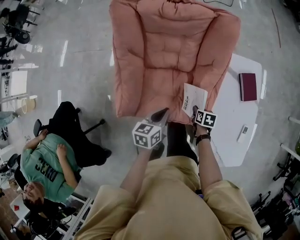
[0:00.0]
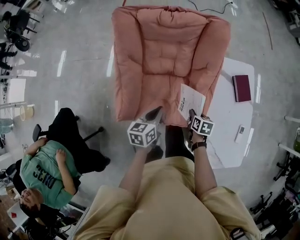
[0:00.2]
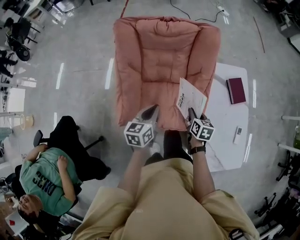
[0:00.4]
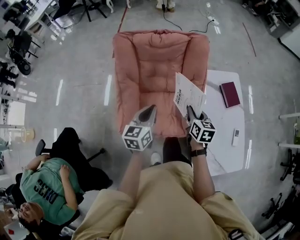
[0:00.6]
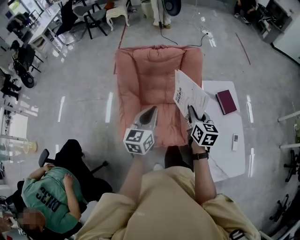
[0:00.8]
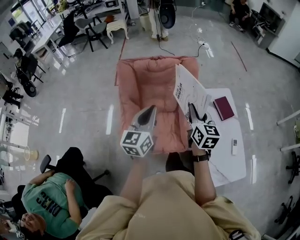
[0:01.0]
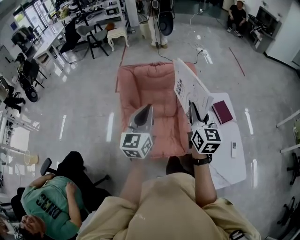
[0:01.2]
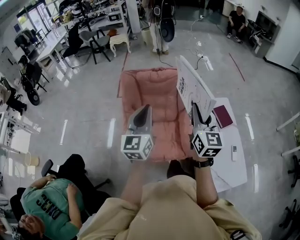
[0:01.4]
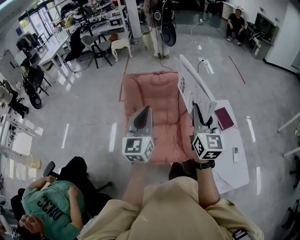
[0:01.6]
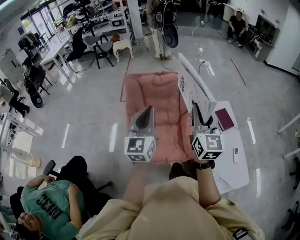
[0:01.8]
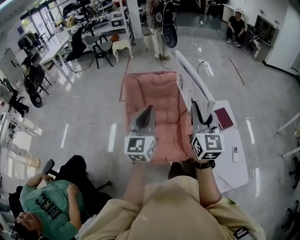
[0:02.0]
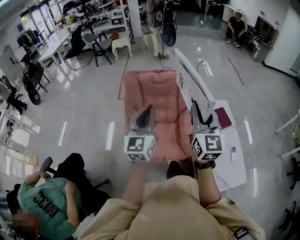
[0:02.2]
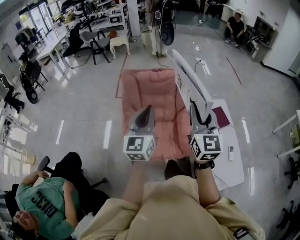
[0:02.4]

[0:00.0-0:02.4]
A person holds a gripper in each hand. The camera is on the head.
0:00.0 to 0:01.2: The grippers both shift upward by roughly 40 cm. The right gripper tips its fingers upward by about 60 degrees. Meanwhile the left gripper tips its fingers upward by about 40 degrees.
0:01.2 to 0:02.4: The left gripper goes about 5 cm backward, while the right gripper travels upward and backward by approximately 10 cm.

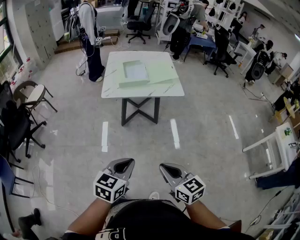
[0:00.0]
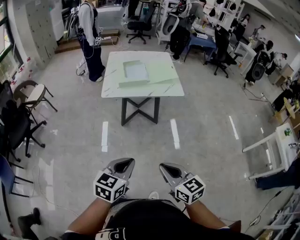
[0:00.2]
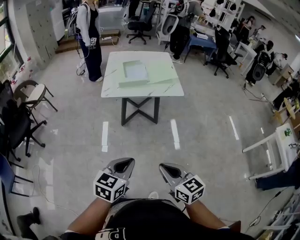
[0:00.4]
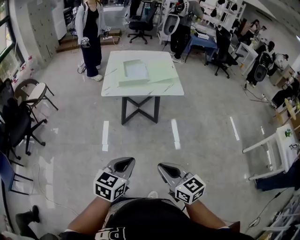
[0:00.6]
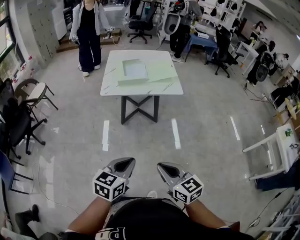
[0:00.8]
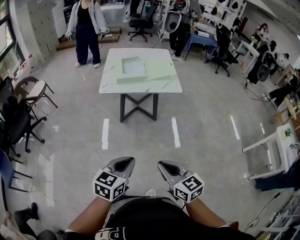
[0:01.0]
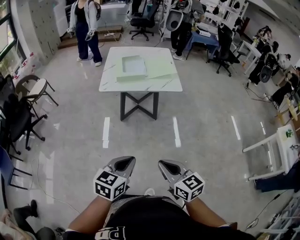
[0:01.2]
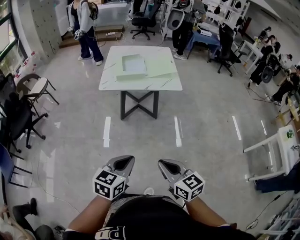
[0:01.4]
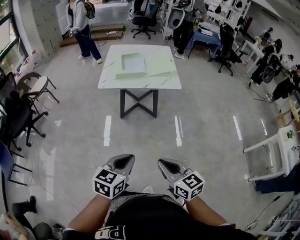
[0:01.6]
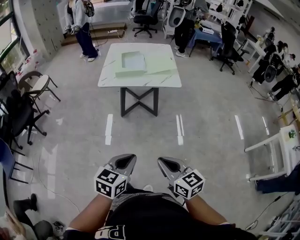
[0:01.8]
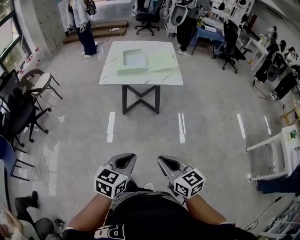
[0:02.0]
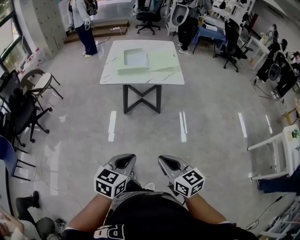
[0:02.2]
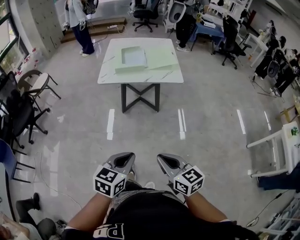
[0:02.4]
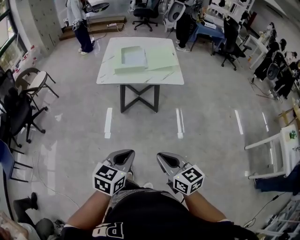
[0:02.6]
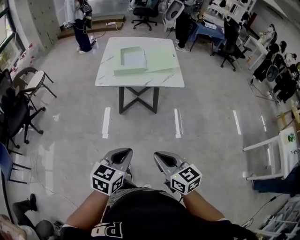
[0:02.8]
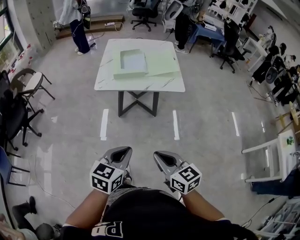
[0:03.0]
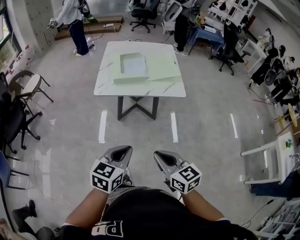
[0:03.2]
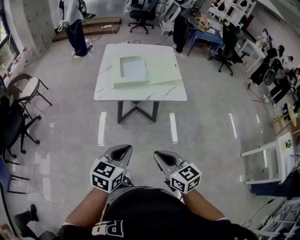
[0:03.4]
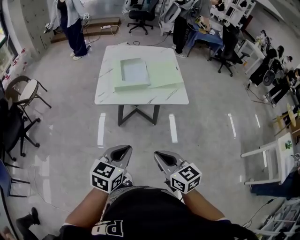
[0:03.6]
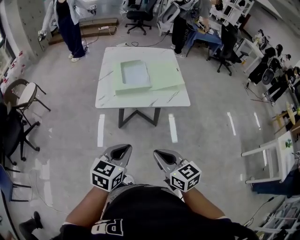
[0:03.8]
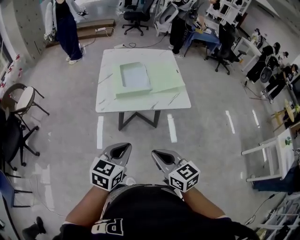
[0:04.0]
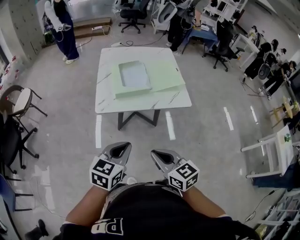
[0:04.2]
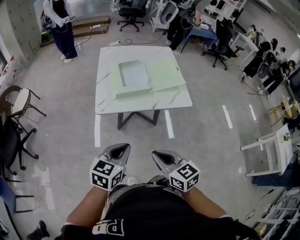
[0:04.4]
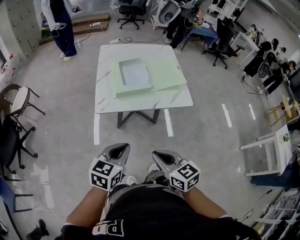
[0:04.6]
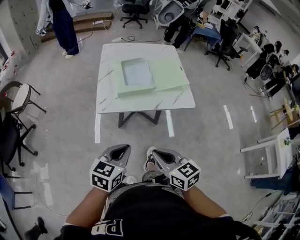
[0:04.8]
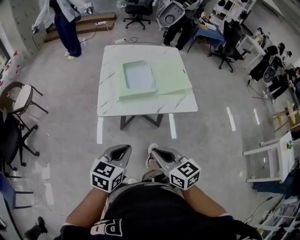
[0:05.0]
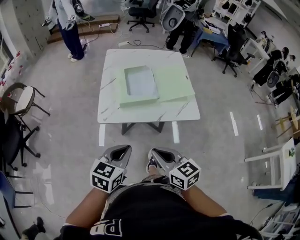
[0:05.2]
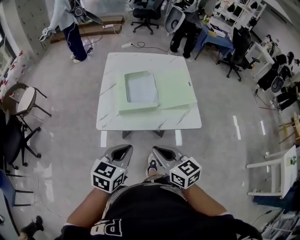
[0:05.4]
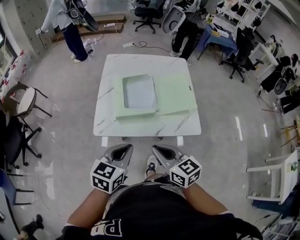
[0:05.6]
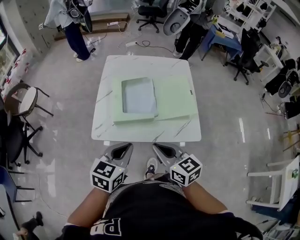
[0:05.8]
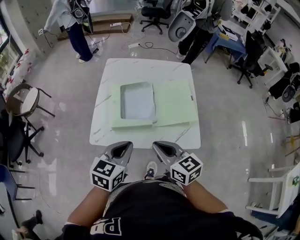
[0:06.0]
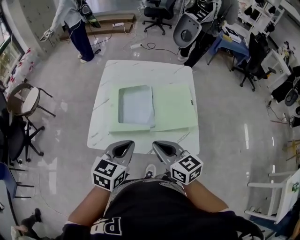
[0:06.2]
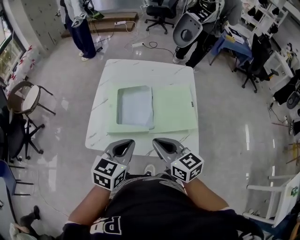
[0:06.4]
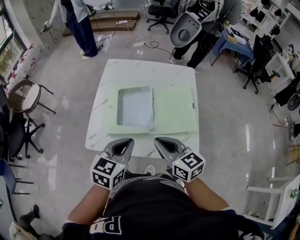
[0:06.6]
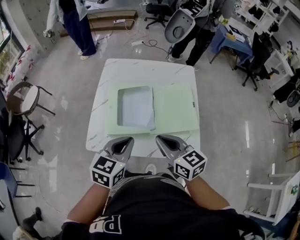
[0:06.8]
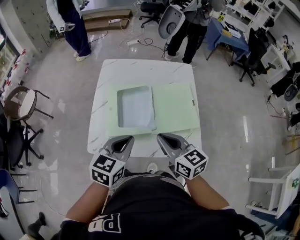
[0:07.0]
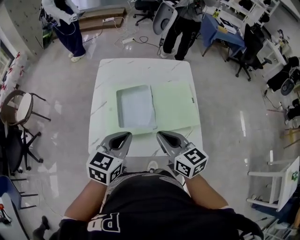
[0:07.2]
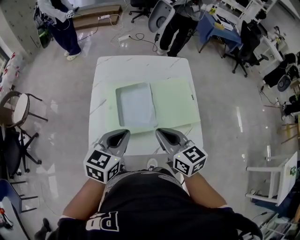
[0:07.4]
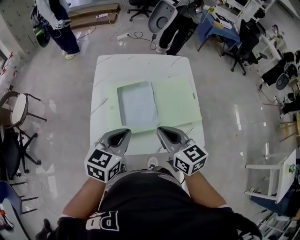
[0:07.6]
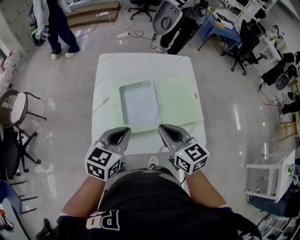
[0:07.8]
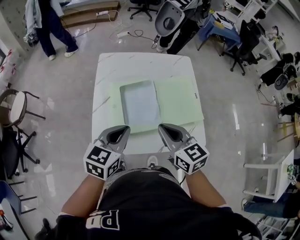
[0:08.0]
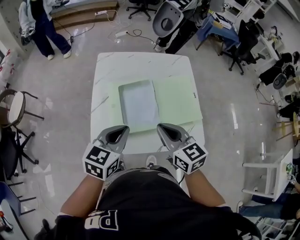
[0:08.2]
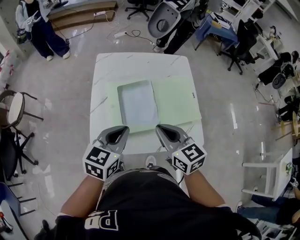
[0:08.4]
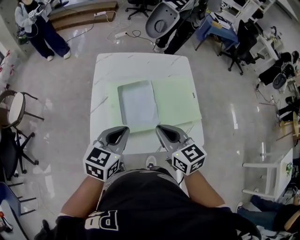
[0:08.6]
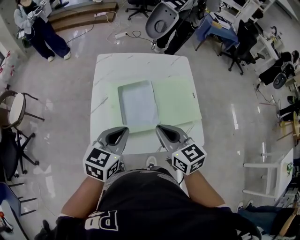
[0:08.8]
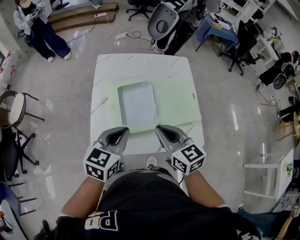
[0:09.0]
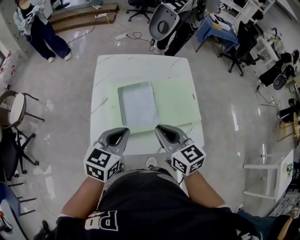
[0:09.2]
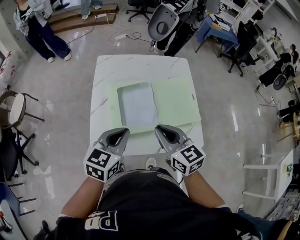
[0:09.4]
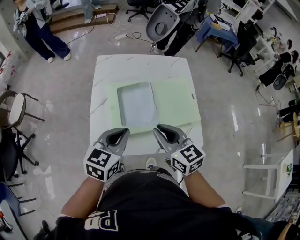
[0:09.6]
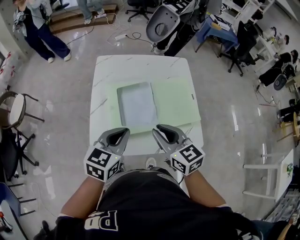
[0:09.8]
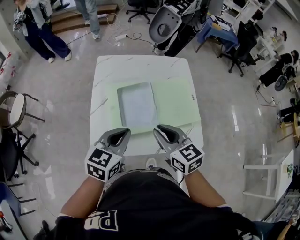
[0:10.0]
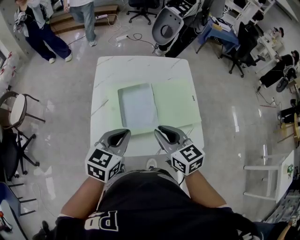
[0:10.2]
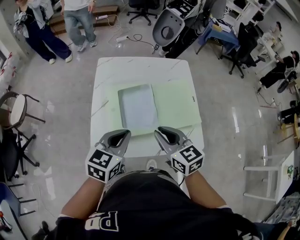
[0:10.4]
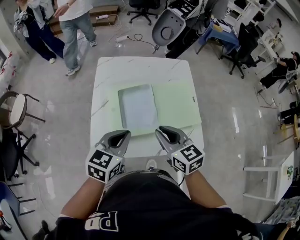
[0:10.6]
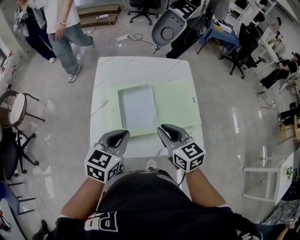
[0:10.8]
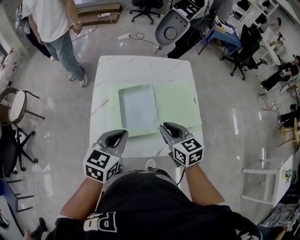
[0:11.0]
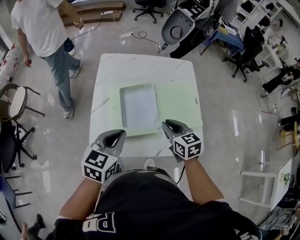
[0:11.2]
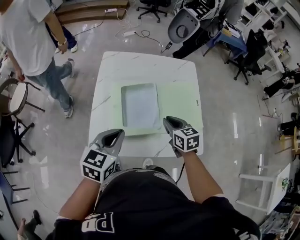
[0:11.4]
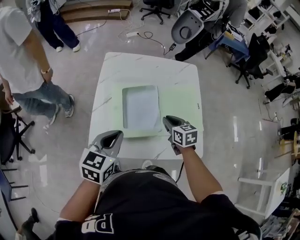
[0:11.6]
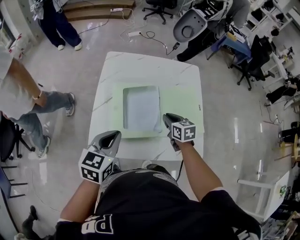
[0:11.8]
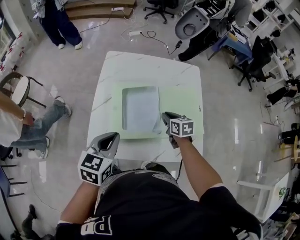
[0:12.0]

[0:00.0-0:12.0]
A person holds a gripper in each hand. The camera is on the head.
0:00.0 to 0:01.6: The two grippers go approximately 5 cm to the right.
0:01.6 to 0:03.0: The two grippers go about 10 cm forward.
0:03.0 to 0:04.4: The two grippers go about 20 cm forward and to the left.
0:04.4 to 0:06.0: The two grippers go about 30 cm forward.
0:06.0 to 0:07.6: The two grippers go some 10 cm forward.
0:07.6 to 0:10.4: The grippers make only small movements.
0:10.4 to 0:12.0: The left gripper changes place by roughly 5 cm; the right gripper heads downward and forward, covering roughly 25 cm, and rotates roughly 20 degrees.

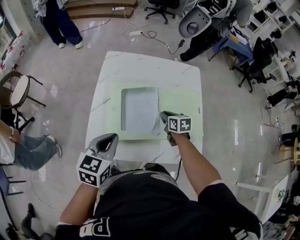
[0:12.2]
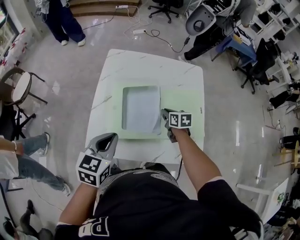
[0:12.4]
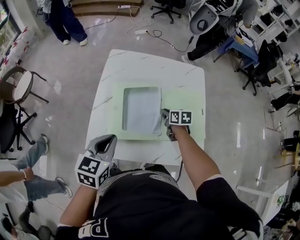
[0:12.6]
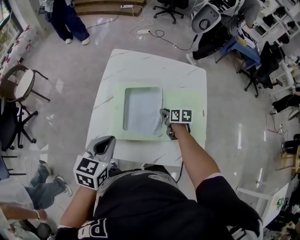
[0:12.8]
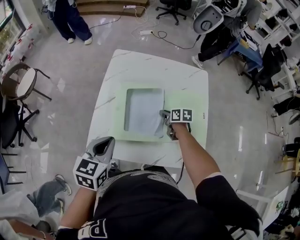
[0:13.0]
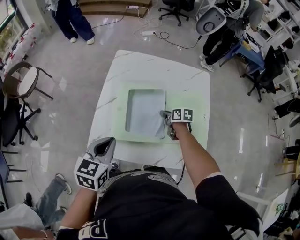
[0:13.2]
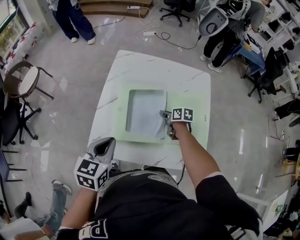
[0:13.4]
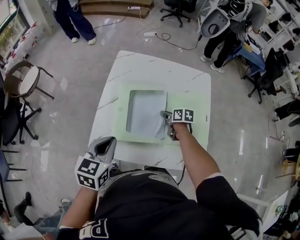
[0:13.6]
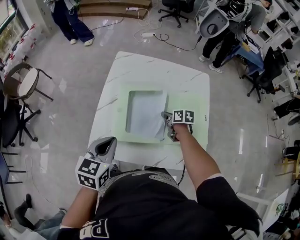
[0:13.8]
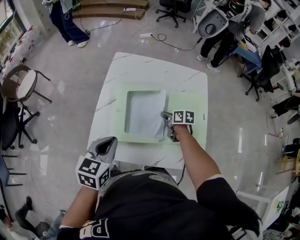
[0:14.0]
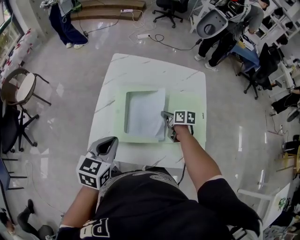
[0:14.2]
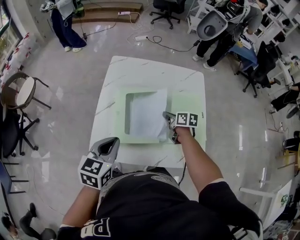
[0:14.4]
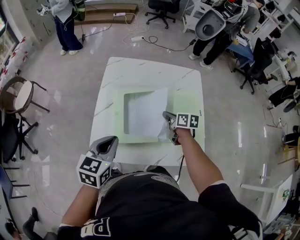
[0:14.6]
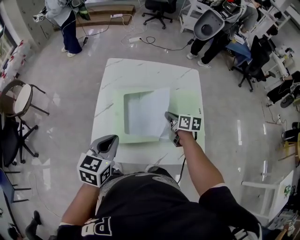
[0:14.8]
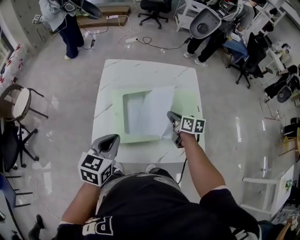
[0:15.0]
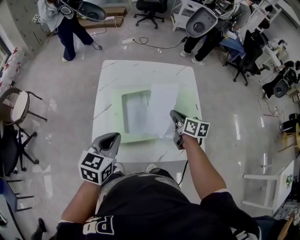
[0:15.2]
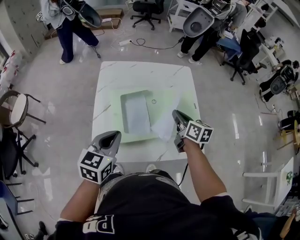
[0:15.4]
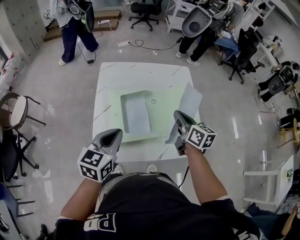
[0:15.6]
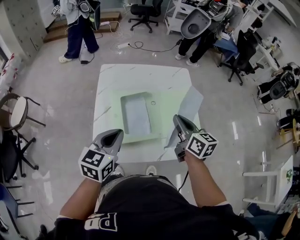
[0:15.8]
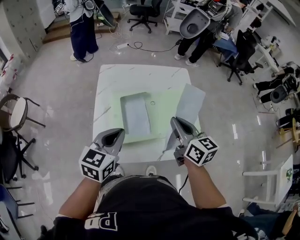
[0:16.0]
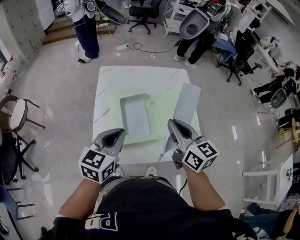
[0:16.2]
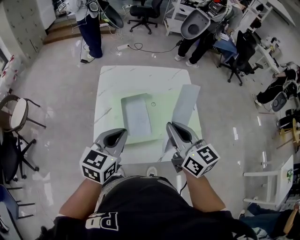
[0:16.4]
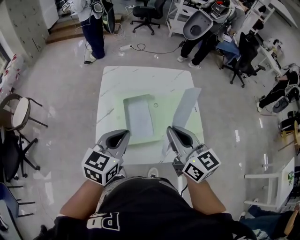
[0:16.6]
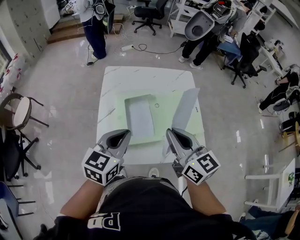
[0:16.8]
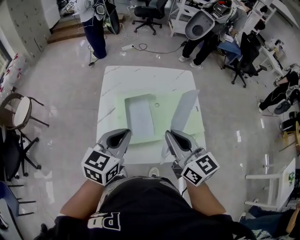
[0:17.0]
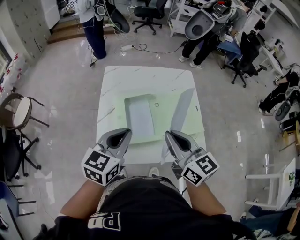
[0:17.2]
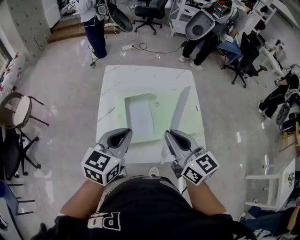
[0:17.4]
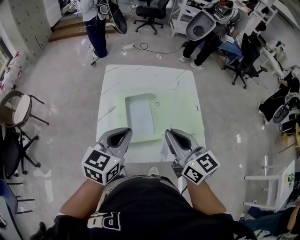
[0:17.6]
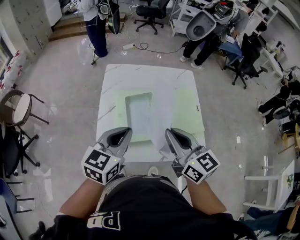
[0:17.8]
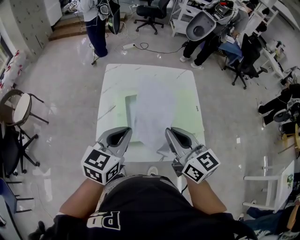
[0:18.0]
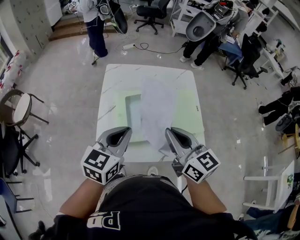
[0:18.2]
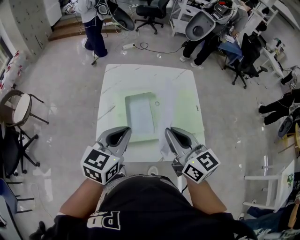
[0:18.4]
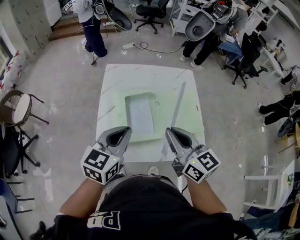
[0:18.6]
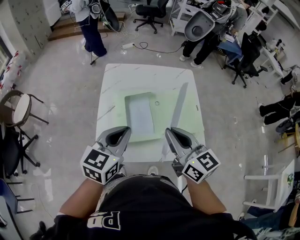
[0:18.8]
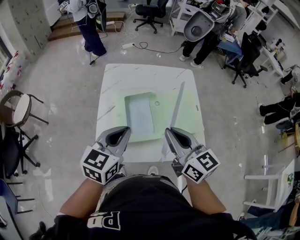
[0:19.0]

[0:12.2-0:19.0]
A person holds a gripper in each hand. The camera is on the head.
0:12.2 to 0:13.6: The right gripper heads downward, covering some 5 cm.
0:13.6 to 0:15.0: The right gripper goes about 15 cm upward and backward.
0:15.0 to 0:16.2: The left gripper goes roughly 5 cm upward; the right gripper heads upward and backward, covering roughly 25 cm, and turns by about 30 degrees.
0:16.2 to 0:17.6: The right gripper changes place by roughly 5 cm.
0:17.6 to 0:19.0: Both grippers stay put.

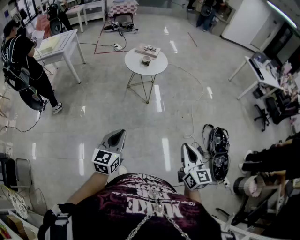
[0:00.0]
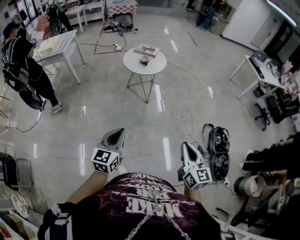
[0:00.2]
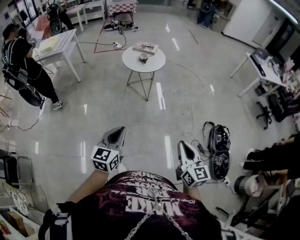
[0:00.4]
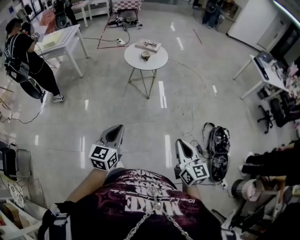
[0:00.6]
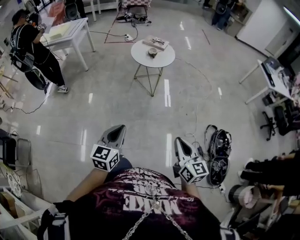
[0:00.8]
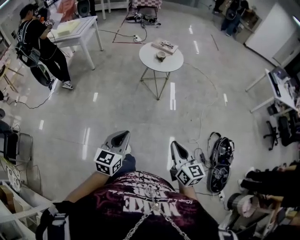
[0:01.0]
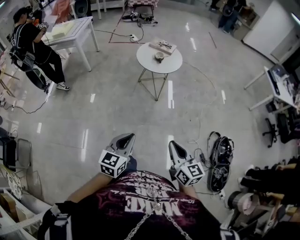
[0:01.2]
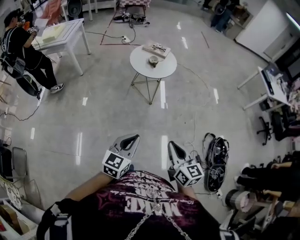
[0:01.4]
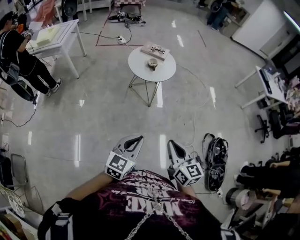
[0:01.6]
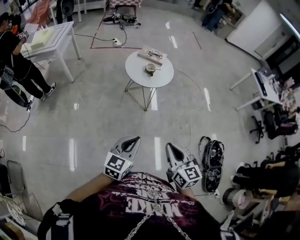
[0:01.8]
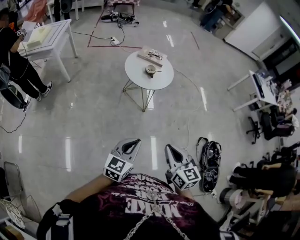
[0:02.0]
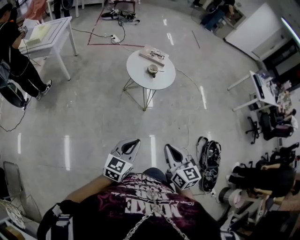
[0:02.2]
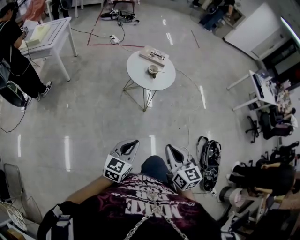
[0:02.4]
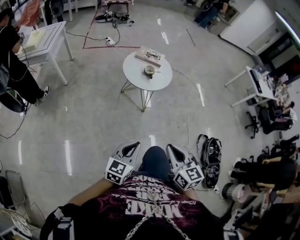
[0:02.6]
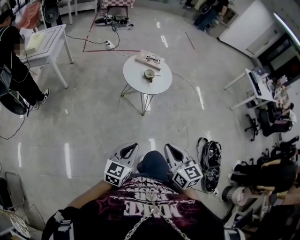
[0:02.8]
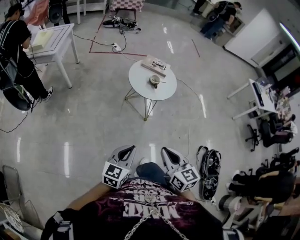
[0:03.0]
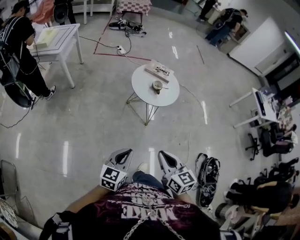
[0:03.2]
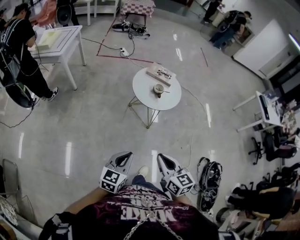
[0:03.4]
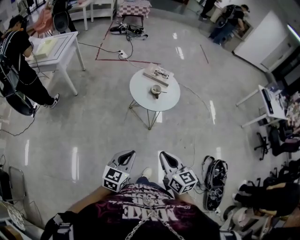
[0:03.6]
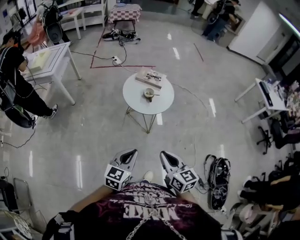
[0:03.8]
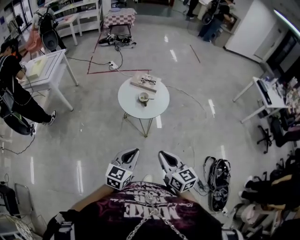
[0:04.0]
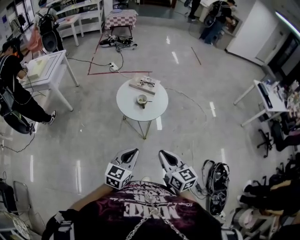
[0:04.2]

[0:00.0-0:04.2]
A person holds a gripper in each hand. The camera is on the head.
0:00.0 to 0:01.4: The left gripper shifts about 10 cm forward and to the right, while the right gripper heads forward, covering some 15 cm.
0:01.4 to 0:02.8: The left gripper travels forward and to the left by some 15 cm. Meanwhile the right gripper heads to the left and forward, covering about 20 cm.
0:02.8 to 0:04.2: Both grippers travel together forward and to the right, some 20 cm.
